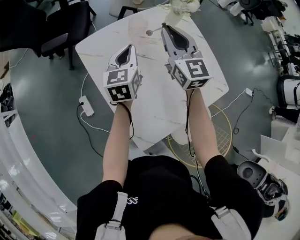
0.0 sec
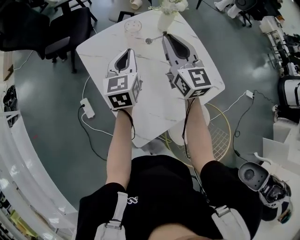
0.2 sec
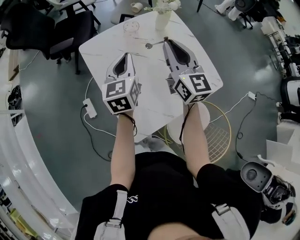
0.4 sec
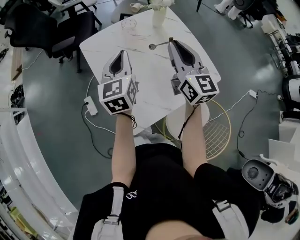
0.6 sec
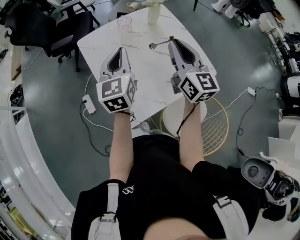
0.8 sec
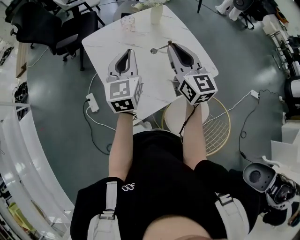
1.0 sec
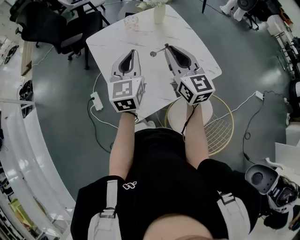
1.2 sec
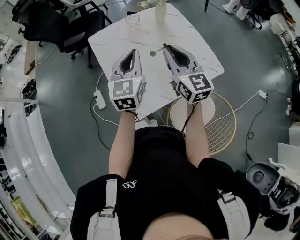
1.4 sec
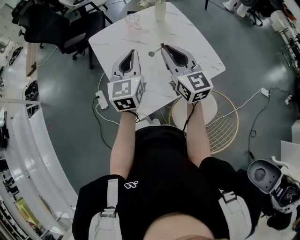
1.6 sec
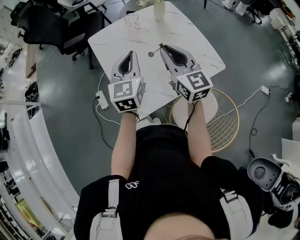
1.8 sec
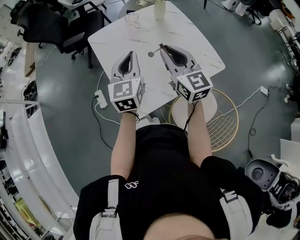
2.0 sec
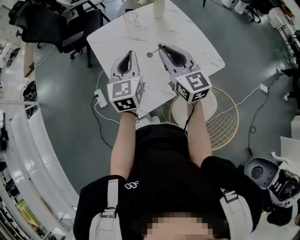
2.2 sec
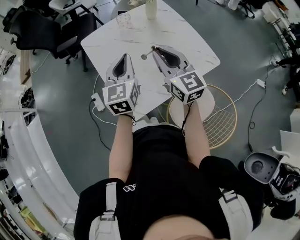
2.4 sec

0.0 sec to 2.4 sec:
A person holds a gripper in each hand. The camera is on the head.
0.0 sec to 1.2 sec: The left gripper is displaced backward and upward by about 25 cm, while the right gripper shifts about 25 cm backward.
1.2 sec to 2.4 sec: The grippers make only small movements.

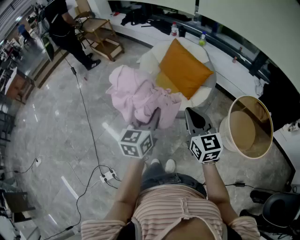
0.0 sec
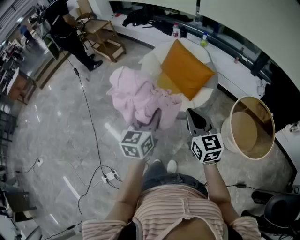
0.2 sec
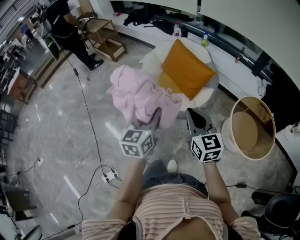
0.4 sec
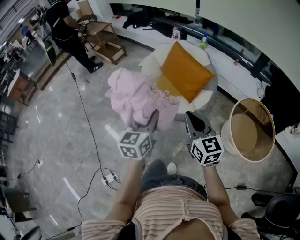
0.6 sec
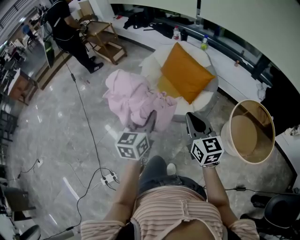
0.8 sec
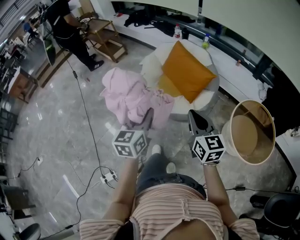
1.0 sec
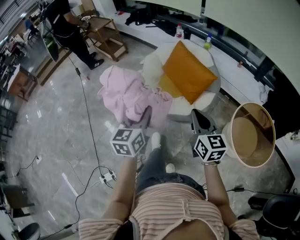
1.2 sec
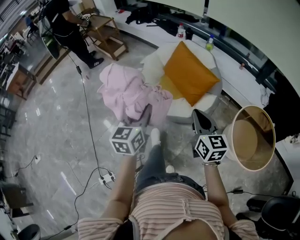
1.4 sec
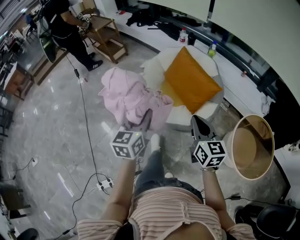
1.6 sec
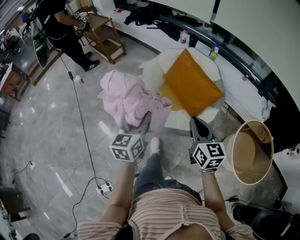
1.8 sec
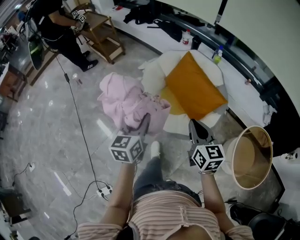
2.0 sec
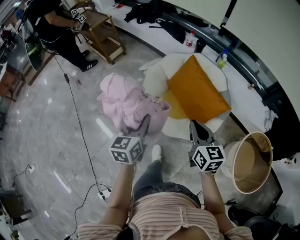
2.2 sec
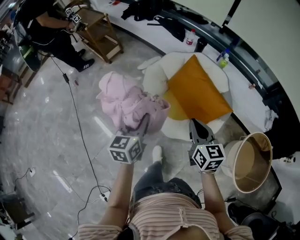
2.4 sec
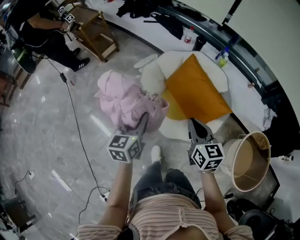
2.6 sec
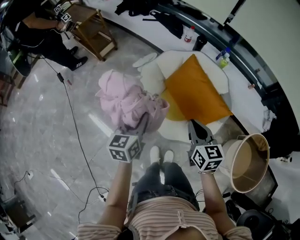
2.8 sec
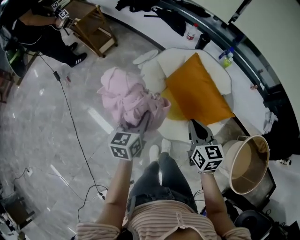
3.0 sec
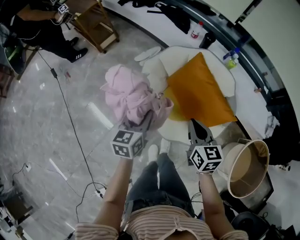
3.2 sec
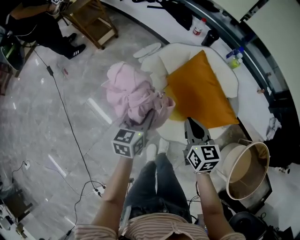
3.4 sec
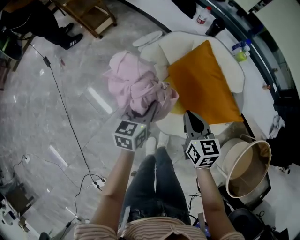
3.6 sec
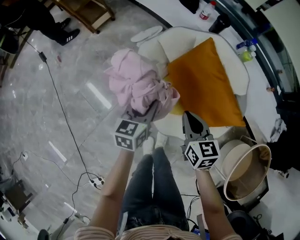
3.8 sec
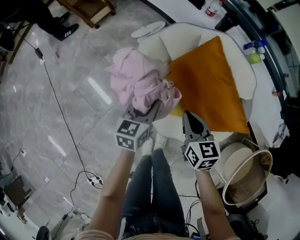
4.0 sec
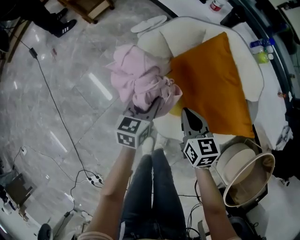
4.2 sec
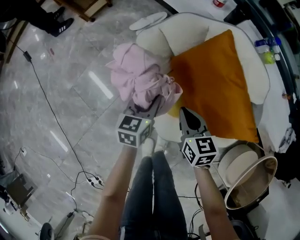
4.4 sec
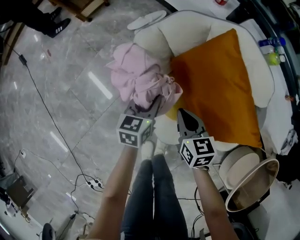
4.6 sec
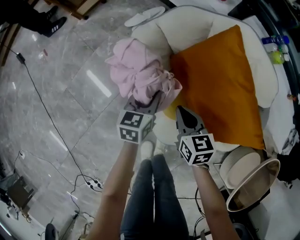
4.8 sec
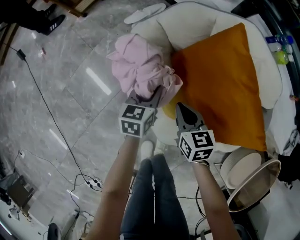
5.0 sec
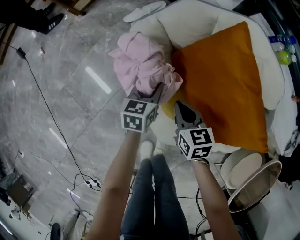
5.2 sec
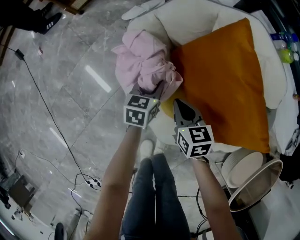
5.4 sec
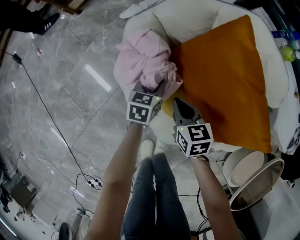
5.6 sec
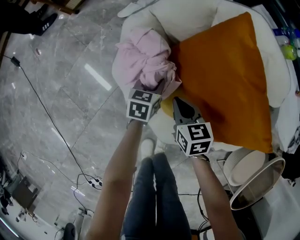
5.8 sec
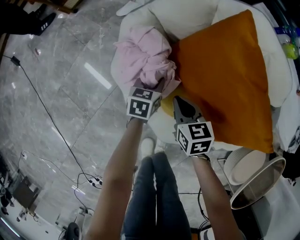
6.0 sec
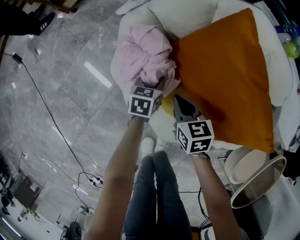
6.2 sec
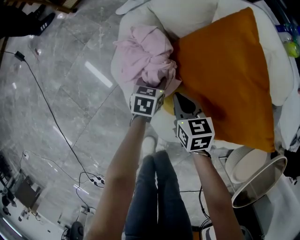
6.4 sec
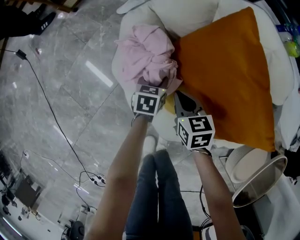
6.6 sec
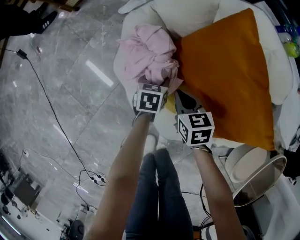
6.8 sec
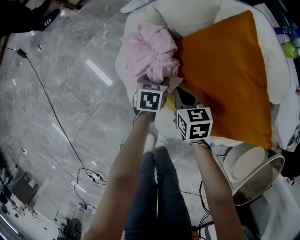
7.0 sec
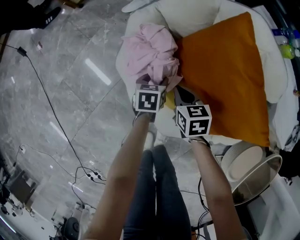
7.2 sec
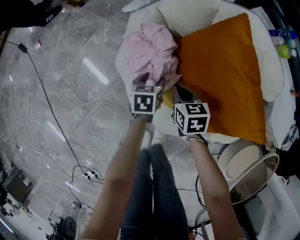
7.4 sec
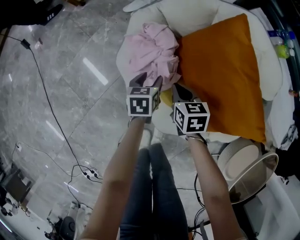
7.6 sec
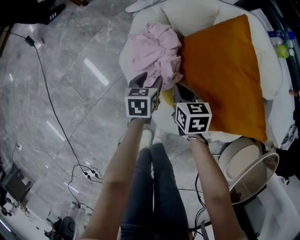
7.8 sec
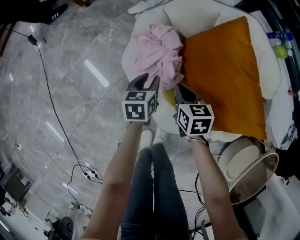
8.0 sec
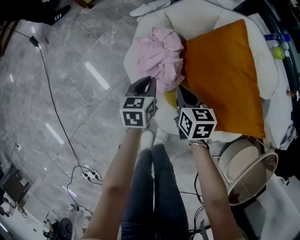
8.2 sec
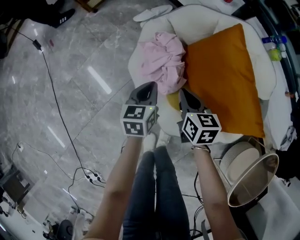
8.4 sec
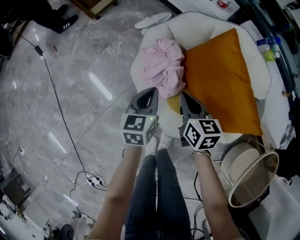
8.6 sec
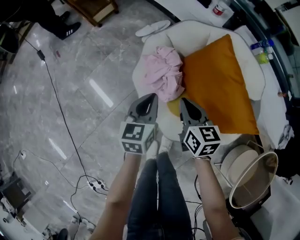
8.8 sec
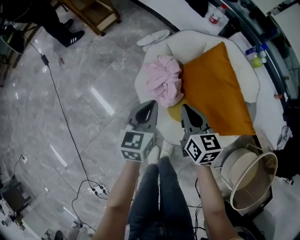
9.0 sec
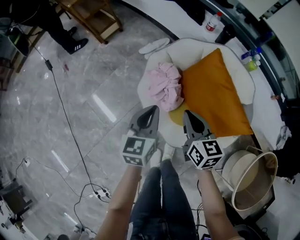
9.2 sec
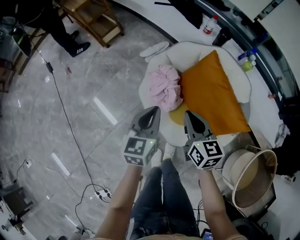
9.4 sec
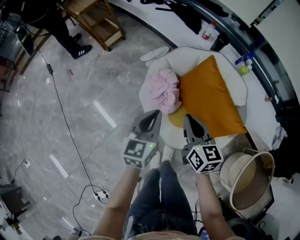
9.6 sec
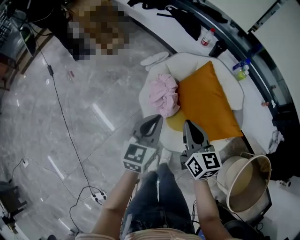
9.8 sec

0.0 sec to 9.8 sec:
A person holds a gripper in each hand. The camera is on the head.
0.0 sec to 1.4 sec: The two grippers go about 5 cm forward.
1.4 sec to 2.8 sec: The grippers both shift forward by some 30 cm.
2.8 sec to 4.2 sec: The grippers both shift downward and forward by roughly 30 cm.
4.2 sec to 5.6 sec: The grippers both shift downward by some 20 cm.
5.6 sec to 7.0 sec: The left gripper opens up.
7.0 sec to 8.4 sec: The right gripper is displaced upward by approximately 10 cm; the left gripper heads upward and to the left, covering about 20 cm, swivels roughly 20 degrees, and closes its fingers.
8.4 sec to 9.8 sec: The grippers both shift upward by about 30 cm. The left gripper turns by some 20 degrees. The right gripper rotates roughly 20 degrees.

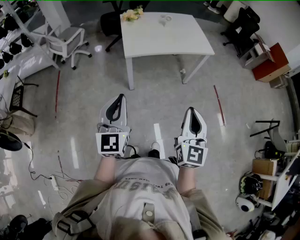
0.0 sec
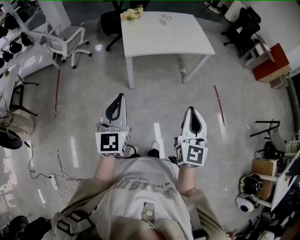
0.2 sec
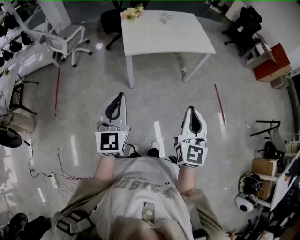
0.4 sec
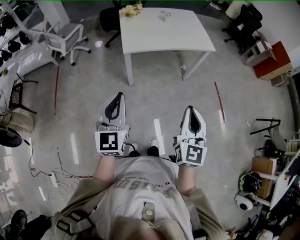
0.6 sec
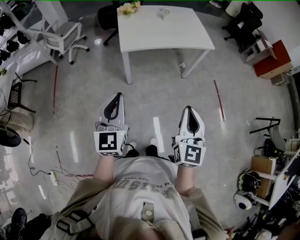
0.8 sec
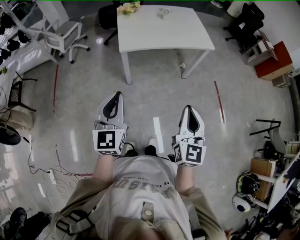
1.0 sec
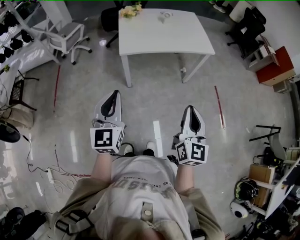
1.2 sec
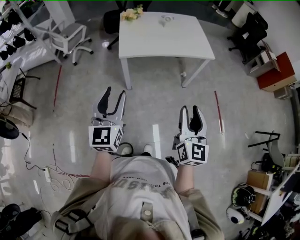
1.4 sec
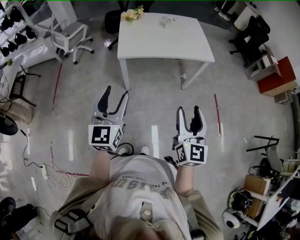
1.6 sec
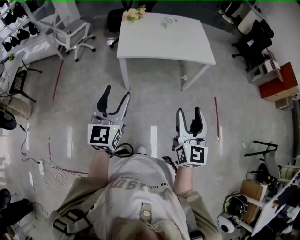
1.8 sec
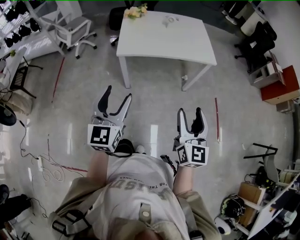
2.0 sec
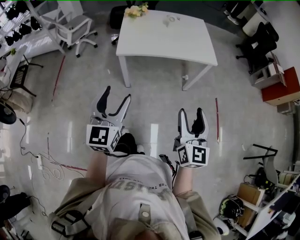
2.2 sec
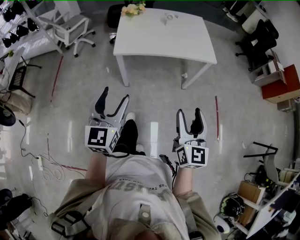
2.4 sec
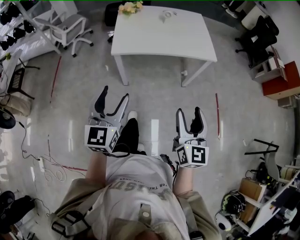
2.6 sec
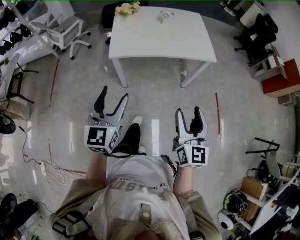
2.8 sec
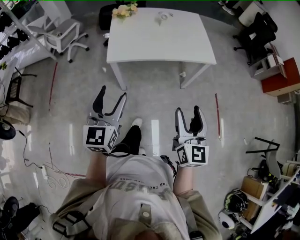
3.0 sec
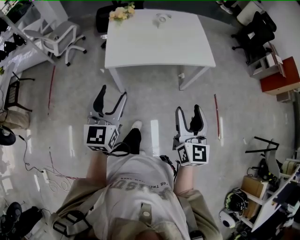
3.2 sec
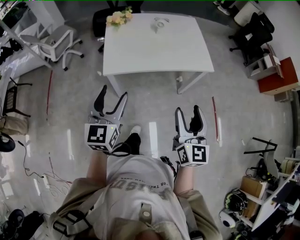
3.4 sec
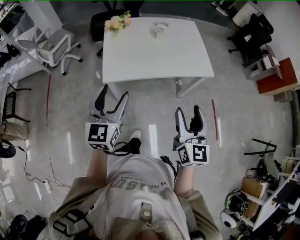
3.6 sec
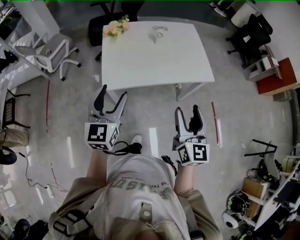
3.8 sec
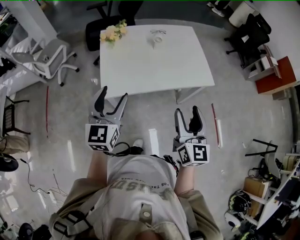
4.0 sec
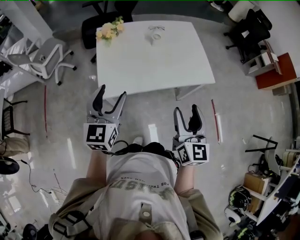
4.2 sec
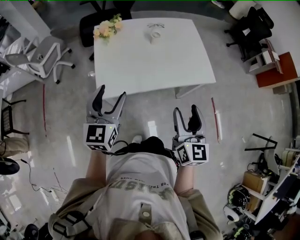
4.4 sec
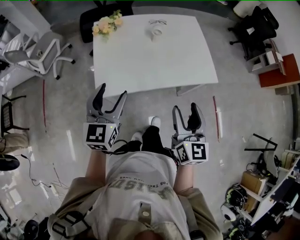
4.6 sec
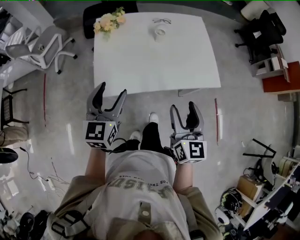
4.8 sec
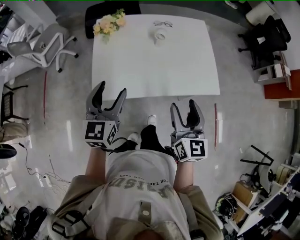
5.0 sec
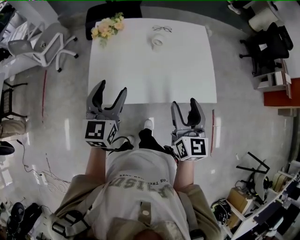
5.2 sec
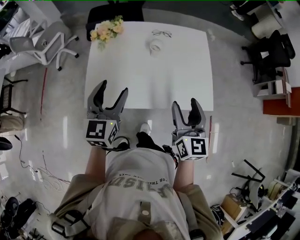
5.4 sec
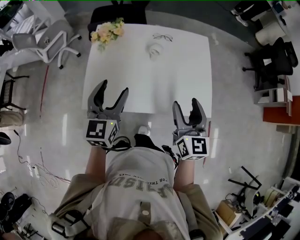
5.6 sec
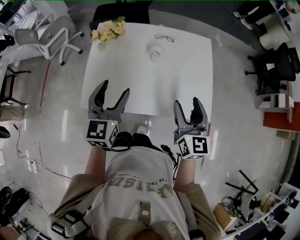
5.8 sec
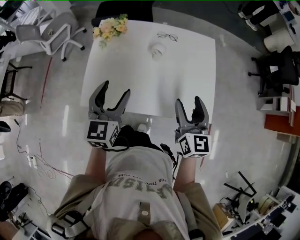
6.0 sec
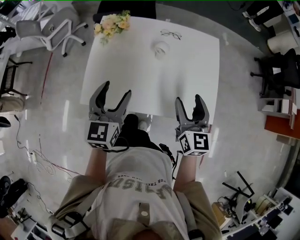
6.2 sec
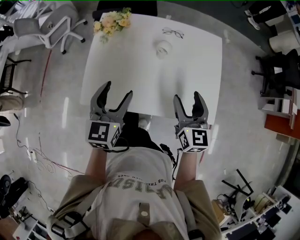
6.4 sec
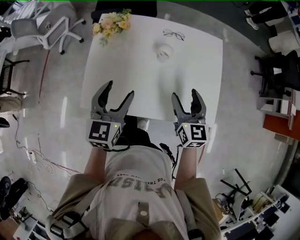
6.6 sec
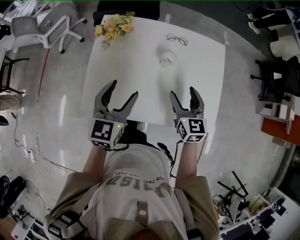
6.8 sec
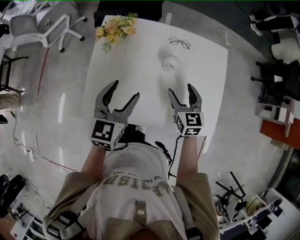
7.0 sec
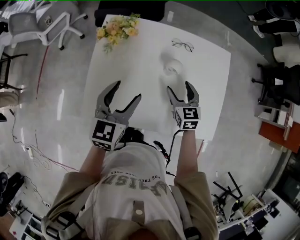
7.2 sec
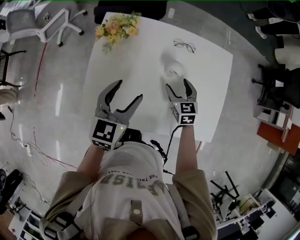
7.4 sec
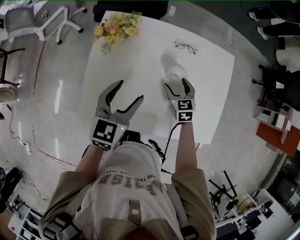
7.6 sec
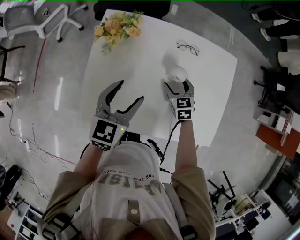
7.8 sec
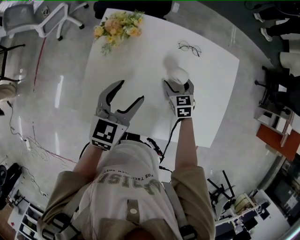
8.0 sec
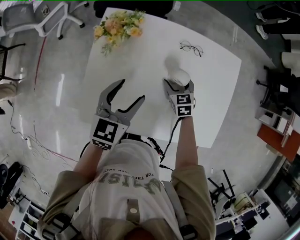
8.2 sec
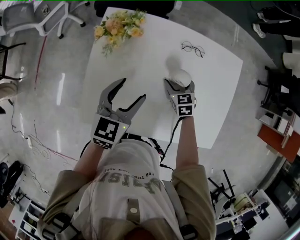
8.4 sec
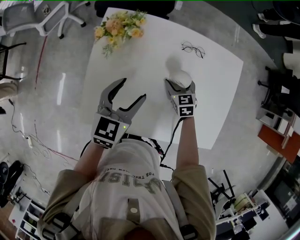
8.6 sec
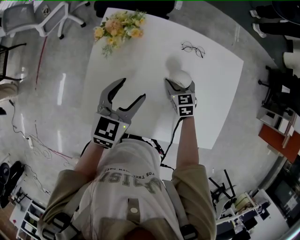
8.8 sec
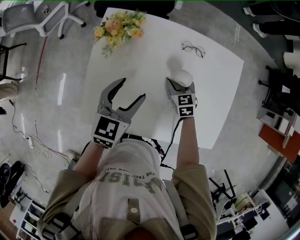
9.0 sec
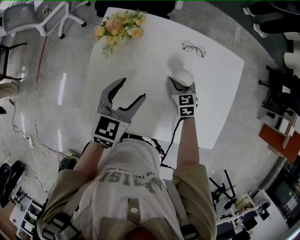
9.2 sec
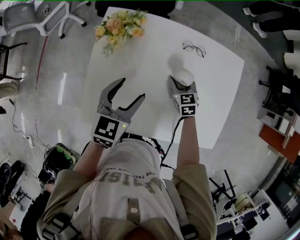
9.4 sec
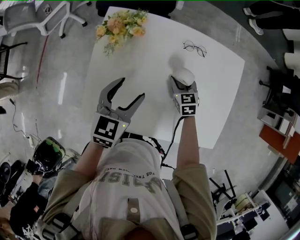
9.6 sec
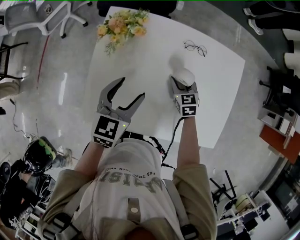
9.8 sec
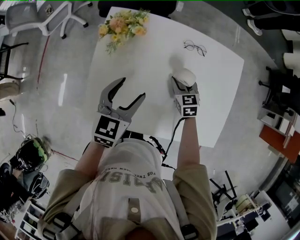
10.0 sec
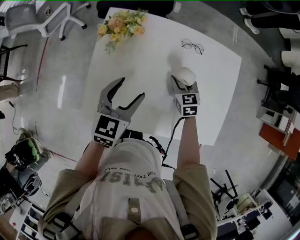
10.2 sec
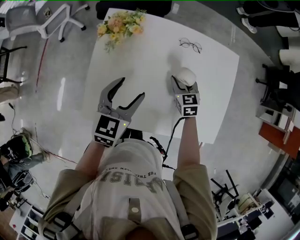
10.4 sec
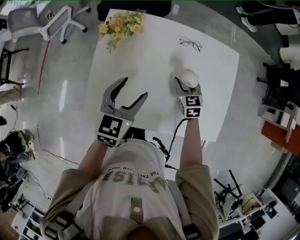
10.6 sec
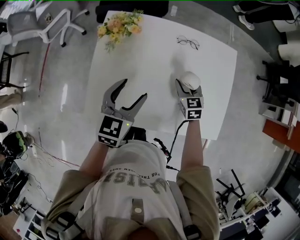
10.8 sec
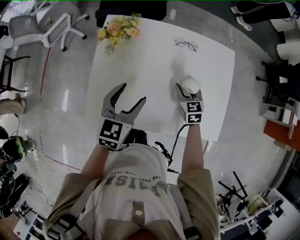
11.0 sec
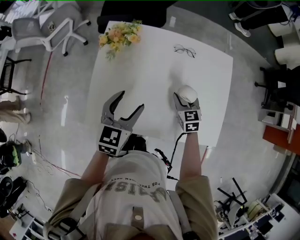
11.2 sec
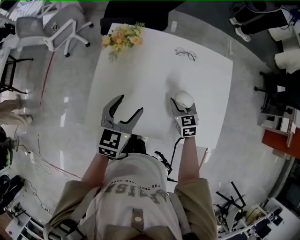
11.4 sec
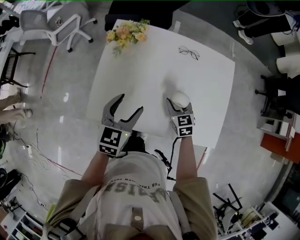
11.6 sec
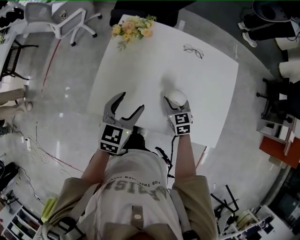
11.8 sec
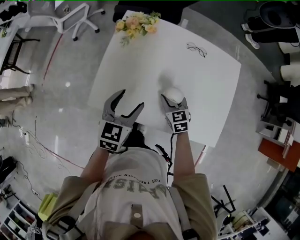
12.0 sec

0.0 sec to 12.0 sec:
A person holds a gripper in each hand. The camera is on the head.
0.0 sec to 1.6 sec: Both grippers move to the right and forward, roughly 10 cm. The left gripper opens, while the right gripper opens.
1.6 sec to 3.0 sec: The two grippers go roughly 10 cm forward.
3.0 sec to 4.4 sec: Both grippers travel together forward, about 25 cm.
4.4 sec to 6.0 sec: Both grippers travel together forward and to the right, approximately 25 cm.
6.0 sec to 7.6 sec: The left gripper travels forward and downward by some 15 cm; the right gripper is displaced downward and forward by about 30 cm, and points its fingers approximately 30 degrees further downward.
7.6 sec to 9.0 sec: The right gripper moves about 5 cm. The left gripper ends up roughly 5 cm from where it was.
9.0 sec to 10.4 sec: The grippers move only a little.
10.4 sec to 12.0 sec: The left gripper travels backward by some 10 cm. Meanwhile the right gripper goes roughly 15 cm backward and to the left.
